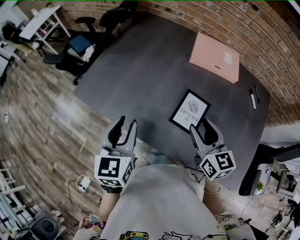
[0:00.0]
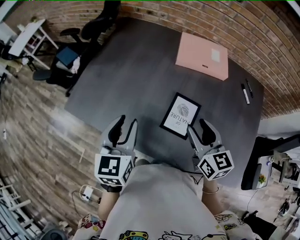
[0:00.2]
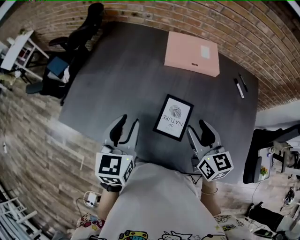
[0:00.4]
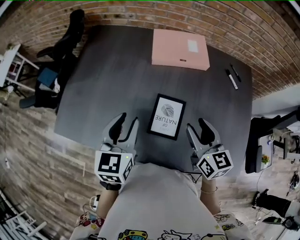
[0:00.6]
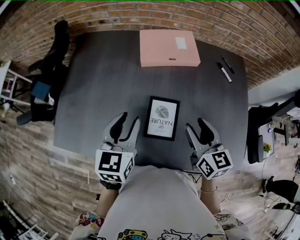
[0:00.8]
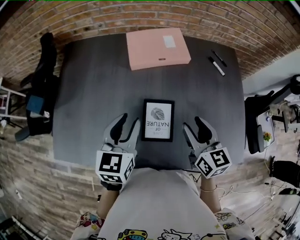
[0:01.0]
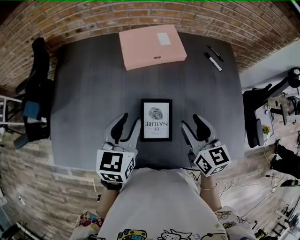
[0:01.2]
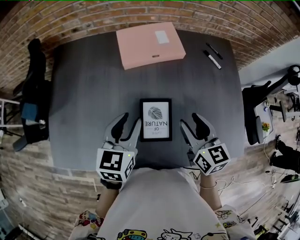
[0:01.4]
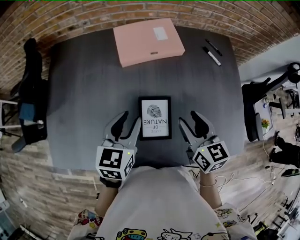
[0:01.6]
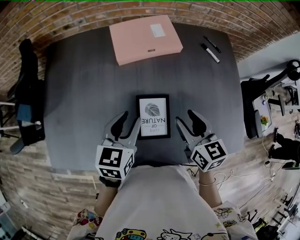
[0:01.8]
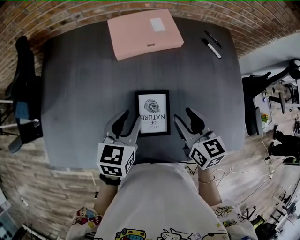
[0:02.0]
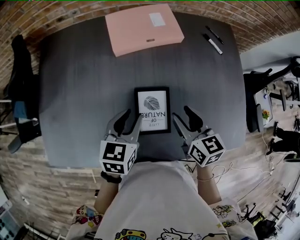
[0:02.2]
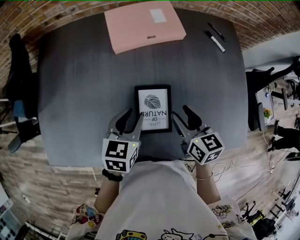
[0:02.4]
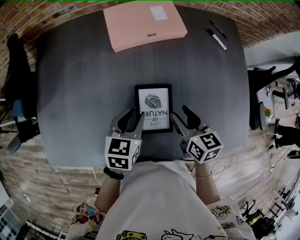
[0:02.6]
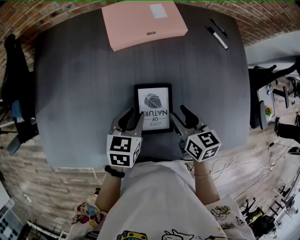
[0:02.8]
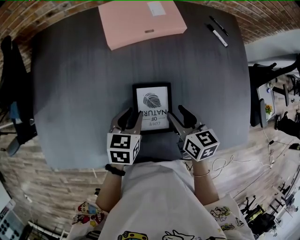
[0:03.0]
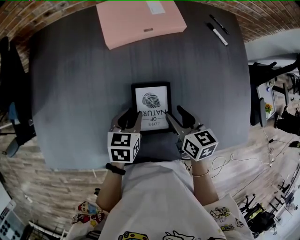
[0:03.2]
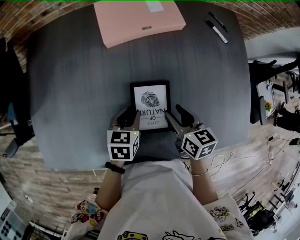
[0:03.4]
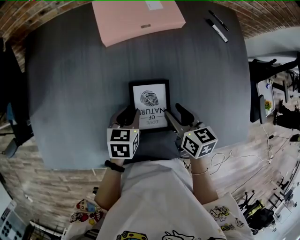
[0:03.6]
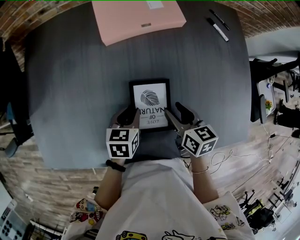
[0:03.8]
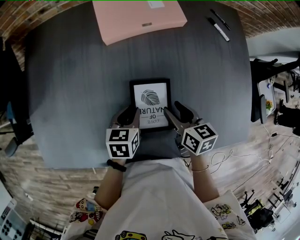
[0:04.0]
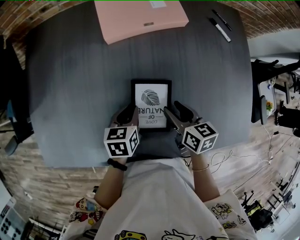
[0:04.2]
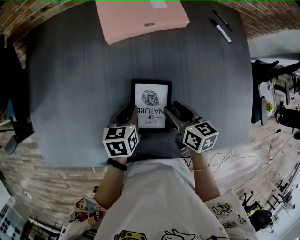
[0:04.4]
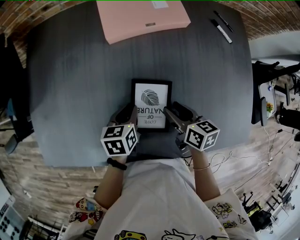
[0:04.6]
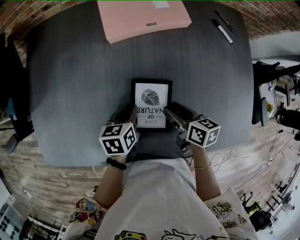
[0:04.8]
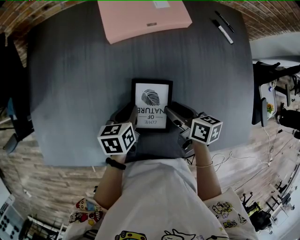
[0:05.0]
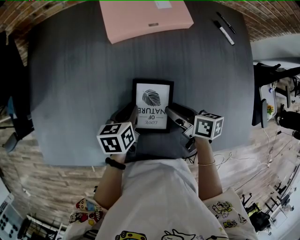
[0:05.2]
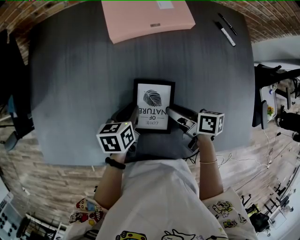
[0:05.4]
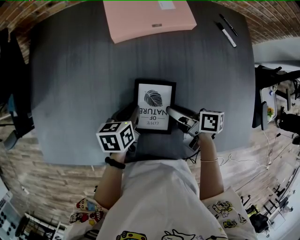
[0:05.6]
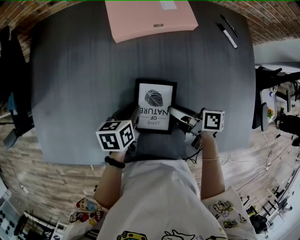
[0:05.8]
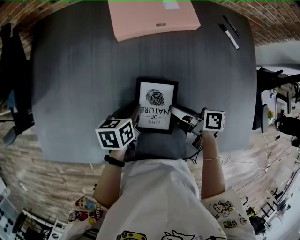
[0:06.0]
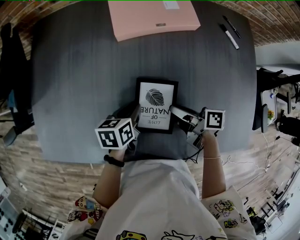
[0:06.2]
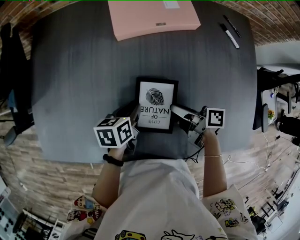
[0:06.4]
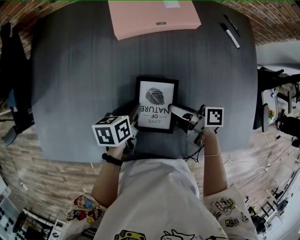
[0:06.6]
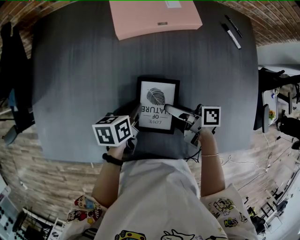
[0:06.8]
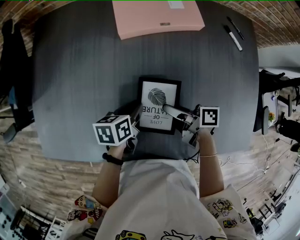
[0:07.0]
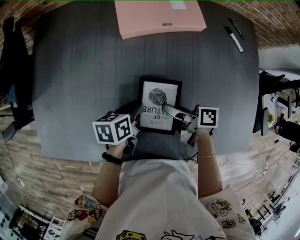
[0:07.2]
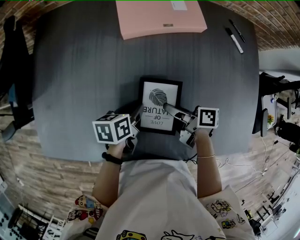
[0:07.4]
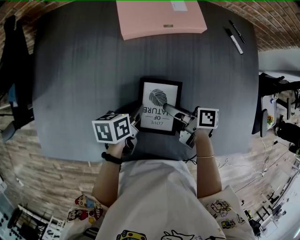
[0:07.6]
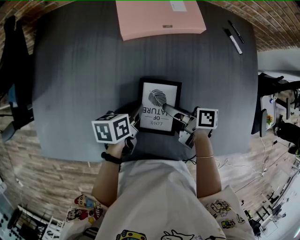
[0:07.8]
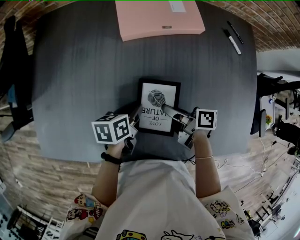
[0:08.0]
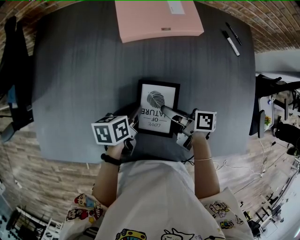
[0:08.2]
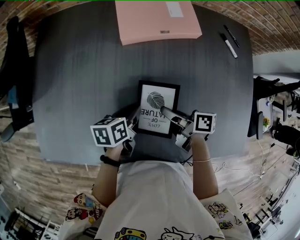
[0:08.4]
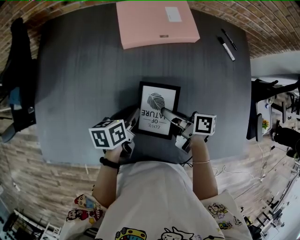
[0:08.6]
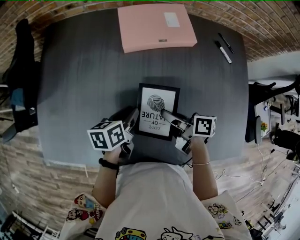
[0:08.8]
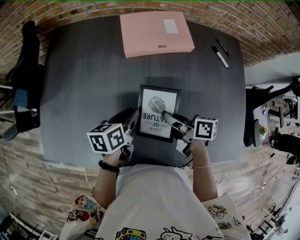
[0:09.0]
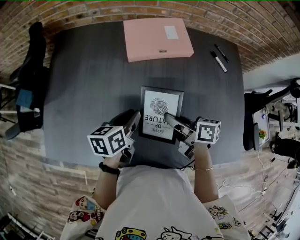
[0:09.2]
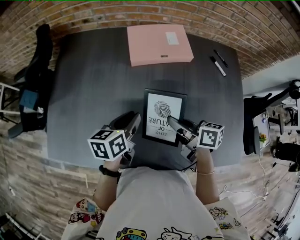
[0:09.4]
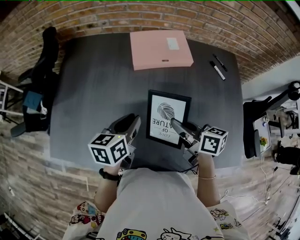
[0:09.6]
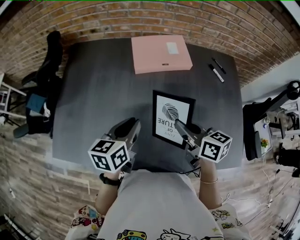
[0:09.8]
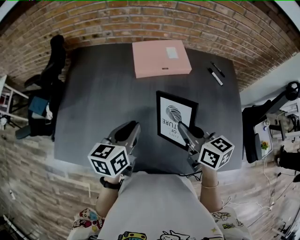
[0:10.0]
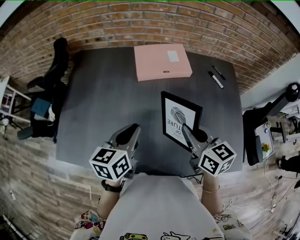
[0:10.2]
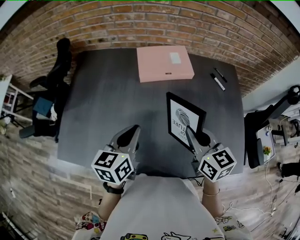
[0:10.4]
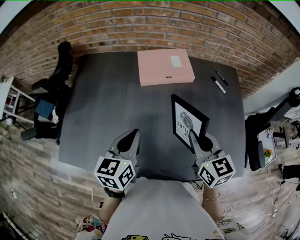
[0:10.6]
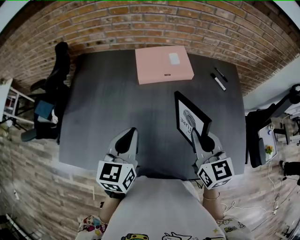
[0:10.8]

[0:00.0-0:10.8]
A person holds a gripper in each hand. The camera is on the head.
0:00.0 to 0:01.6: The left gripper shifts by approximately 25 cm, and turns by roughly 40 degrees, while the right gripper shifts by approximately 10 cm, and turns by approximately 30 degrees.
0:01.6 to 0:03.0: Both grippers move downward, about 15 cm.
0:03.0 to 0:04.6: There are only small adjustments of the grippers.
0:04.6 to 0:06.2: The right gripper rotates some 40 degrees.
0:06.2 to 0:07.8: The right gripper closes up.
0:07.8 to 0:09.2: Both grippers travel together upward, approximately 10 cm. The right gripper turns by approximately 20 degrees.
0:09.2 to 0:10.8: The left gripper shifts some 15 cm upward, turns by roughly 30 degrees, and closes its fingers. Meanwhile the right gripper goes approximately 15 cm upward and to the right, and rotates around the line of its fingers by approximately 50 degrees, counterclockwise from behind.

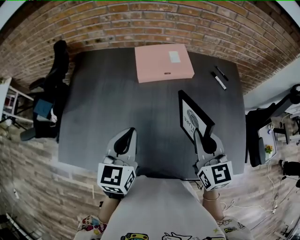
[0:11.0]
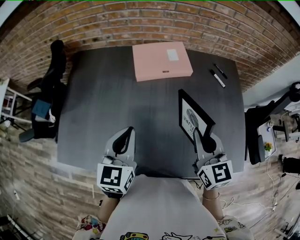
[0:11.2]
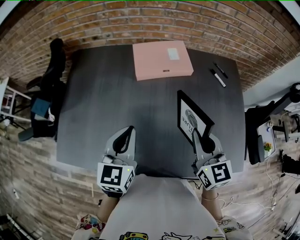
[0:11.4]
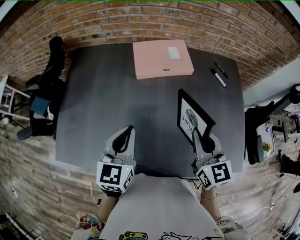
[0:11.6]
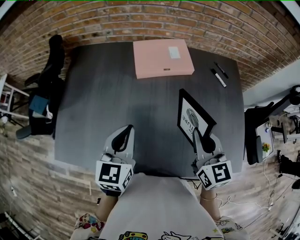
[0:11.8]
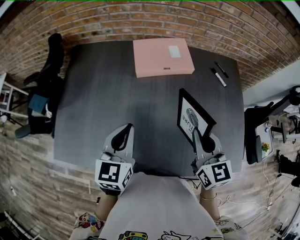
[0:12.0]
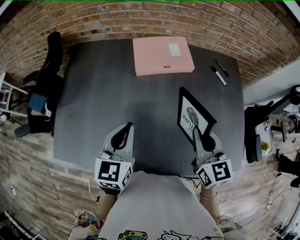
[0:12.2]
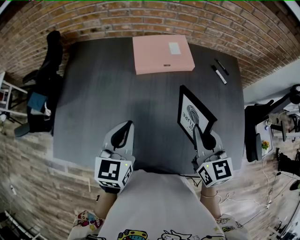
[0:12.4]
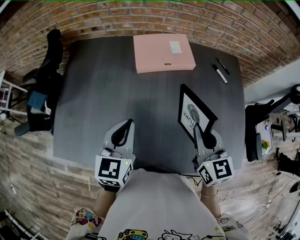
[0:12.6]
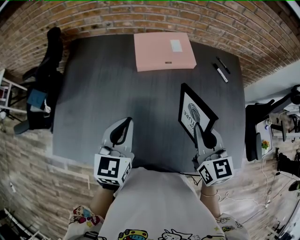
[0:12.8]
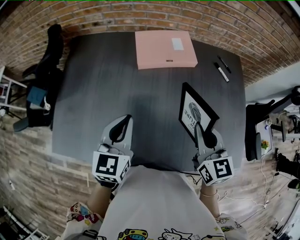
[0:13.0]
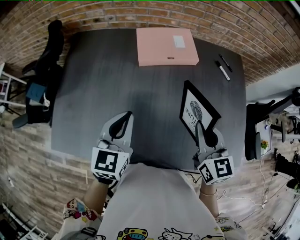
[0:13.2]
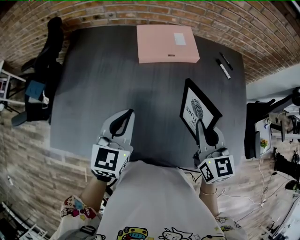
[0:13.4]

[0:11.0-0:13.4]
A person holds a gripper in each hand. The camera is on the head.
0:11.0 to 0:13.4: The grippers stay close to where they were, moving slightly.

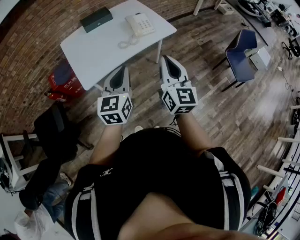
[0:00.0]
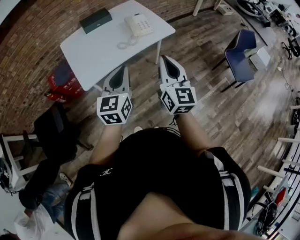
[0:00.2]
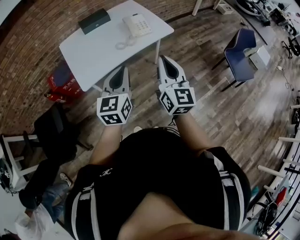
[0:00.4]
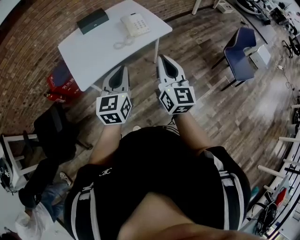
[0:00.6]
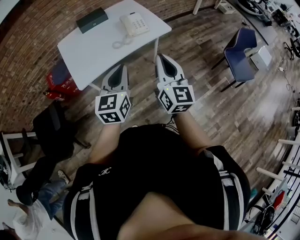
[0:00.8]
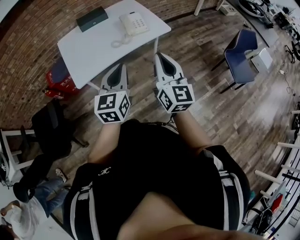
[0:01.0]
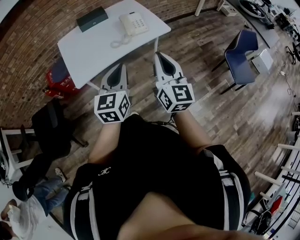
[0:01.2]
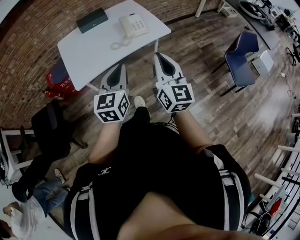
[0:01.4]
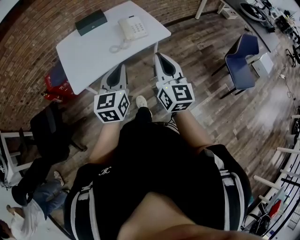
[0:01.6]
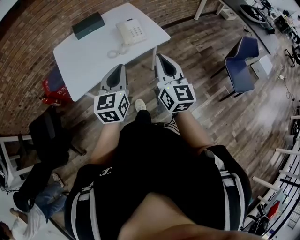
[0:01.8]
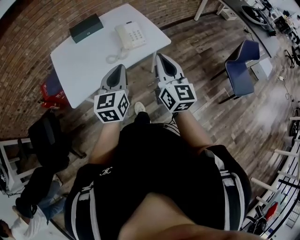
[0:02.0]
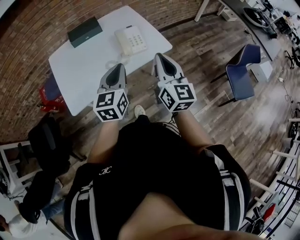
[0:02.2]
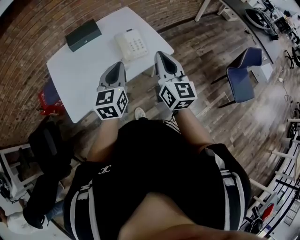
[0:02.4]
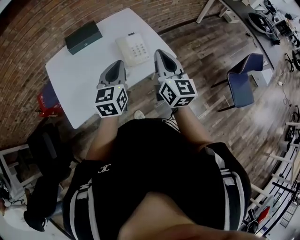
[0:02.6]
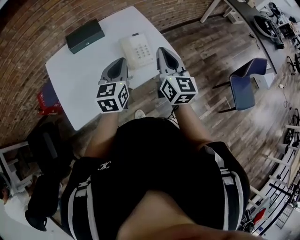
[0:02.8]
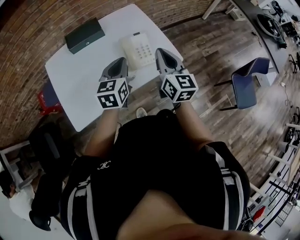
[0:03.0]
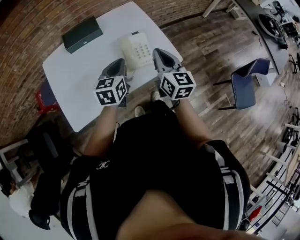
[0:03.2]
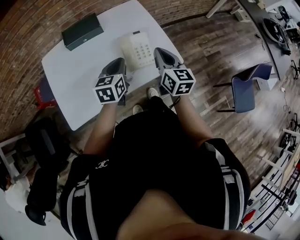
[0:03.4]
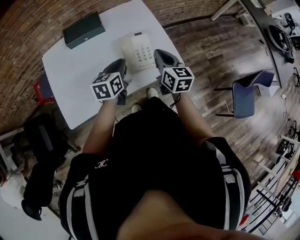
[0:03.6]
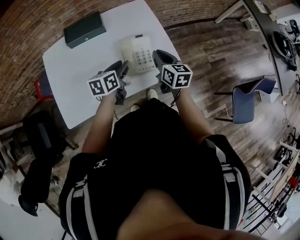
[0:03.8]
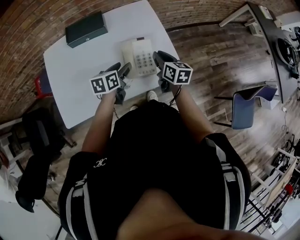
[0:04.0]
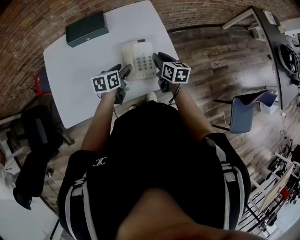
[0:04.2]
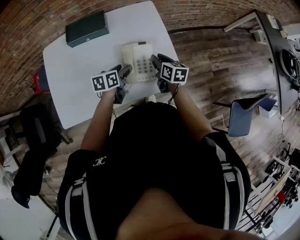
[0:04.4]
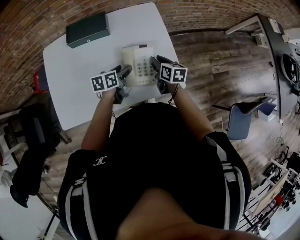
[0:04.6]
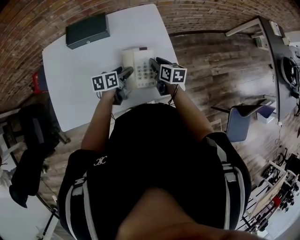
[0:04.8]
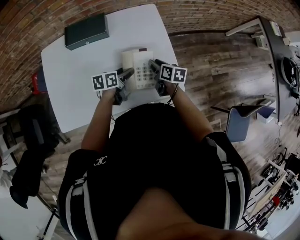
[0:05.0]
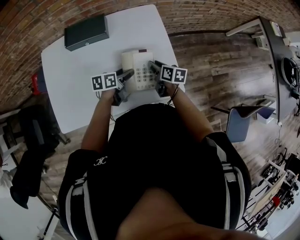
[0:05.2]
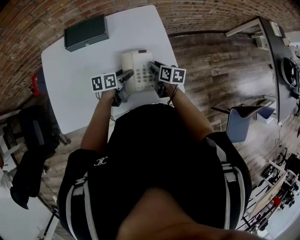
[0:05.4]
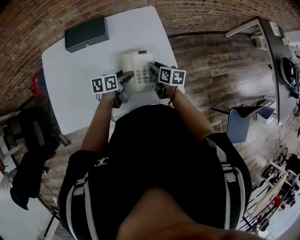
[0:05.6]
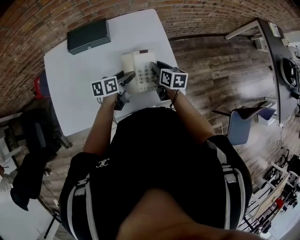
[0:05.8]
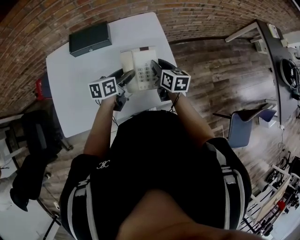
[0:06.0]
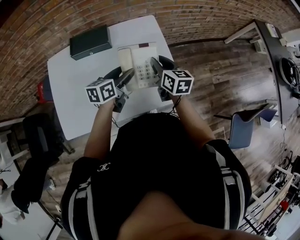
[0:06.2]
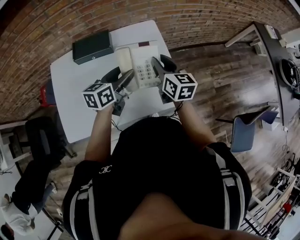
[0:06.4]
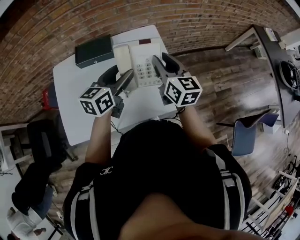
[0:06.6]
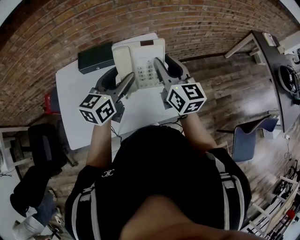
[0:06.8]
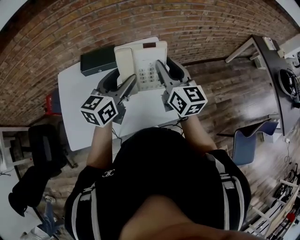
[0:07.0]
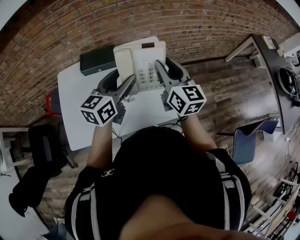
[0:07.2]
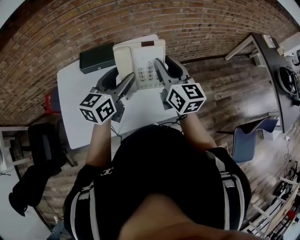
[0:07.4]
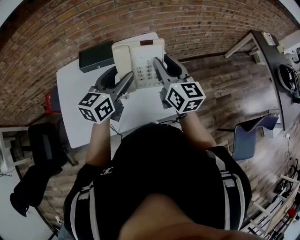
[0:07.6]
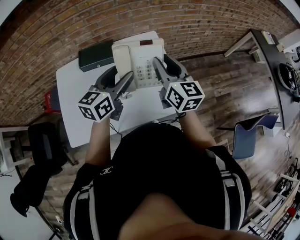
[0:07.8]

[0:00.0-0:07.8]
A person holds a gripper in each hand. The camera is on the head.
0:00.0 to 0:01.6: Both grippers move to the right, some 5 cm.
0:01.6 to 0:03.2: Both grippers travel together forward, approximately 35 cm.
0:03.2 to 0:04.6: Both grippers move downward and forward, about 20 cm. The left gripper swivels some 30 degrees, and opens its fingers. The right gripper rotates about 40 degrees, and opens up.
0:04.6 to 0:06.2: The grippers both shift upward by roughly 10 cm.
0:06.2 to 0:07.8: The two grippers go approximately 15 cm upward. The left gripper rotates some 20 degrees, while the right gripper changes its angle by roughly 20 degrees.

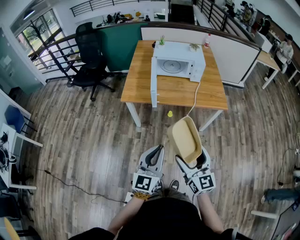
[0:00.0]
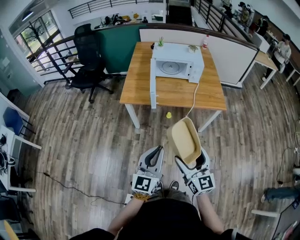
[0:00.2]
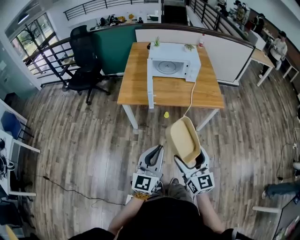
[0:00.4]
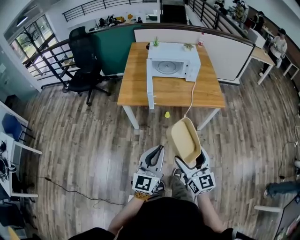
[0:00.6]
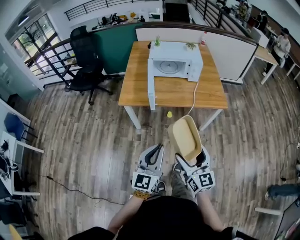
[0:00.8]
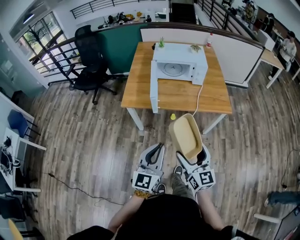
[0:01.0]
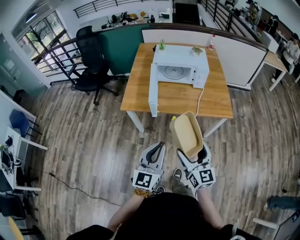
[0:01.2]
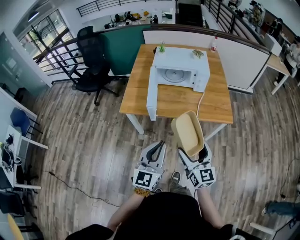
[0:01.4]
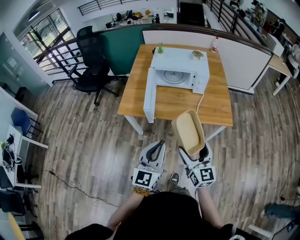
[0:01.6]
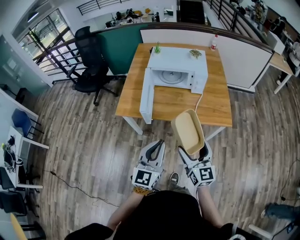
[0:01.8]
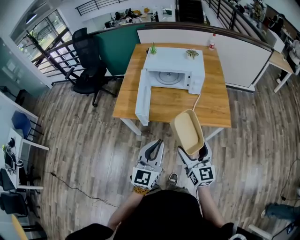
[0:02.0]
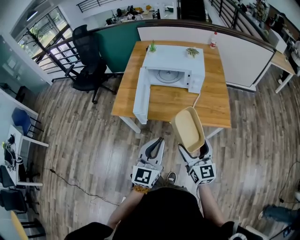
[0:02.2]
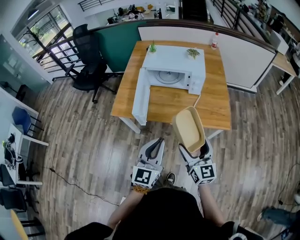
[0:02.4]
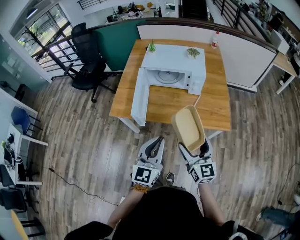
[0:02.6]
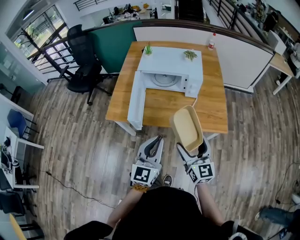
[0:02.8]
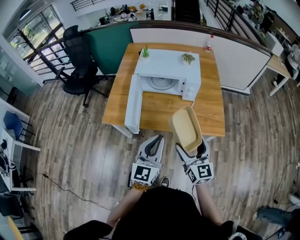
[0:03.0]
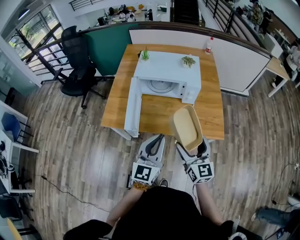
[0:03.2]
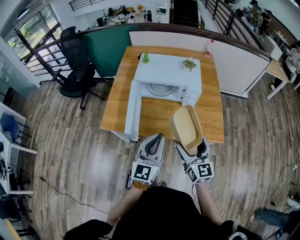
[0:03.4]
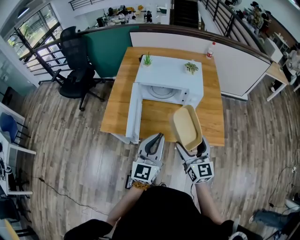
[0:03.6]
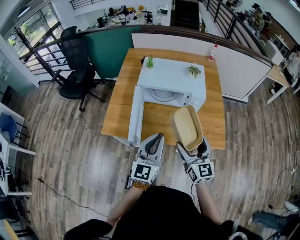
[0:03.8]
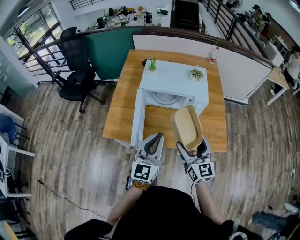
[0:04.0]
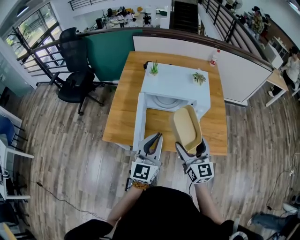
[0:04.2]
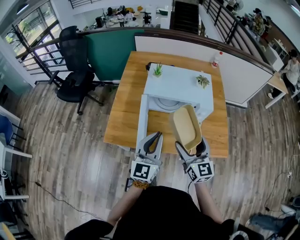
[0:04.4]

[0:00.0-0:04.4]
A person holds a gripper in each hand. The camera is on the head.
0:00.0 to 0:01.4: Both grippers move forward, about 15 cm.
0:01.4 to 0:03.0: The two grippers go approximately 20 cm forward and to the right.
0:03.0 to 0:04.4: Both grippers move forward and to the left, approximately 20 cm.
